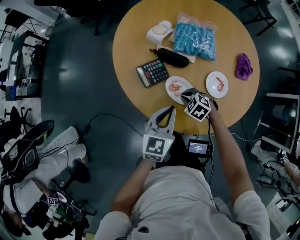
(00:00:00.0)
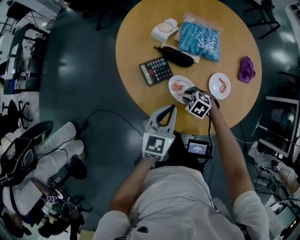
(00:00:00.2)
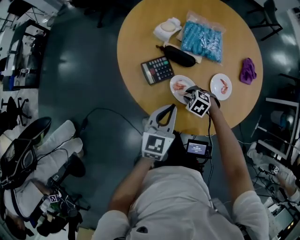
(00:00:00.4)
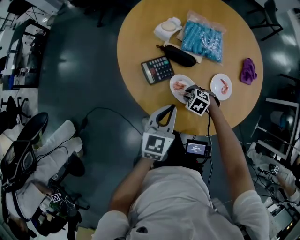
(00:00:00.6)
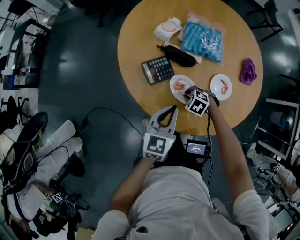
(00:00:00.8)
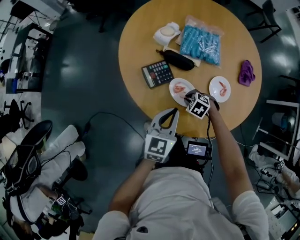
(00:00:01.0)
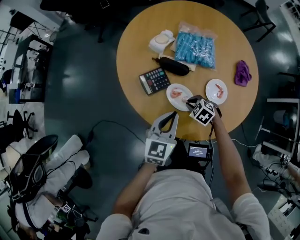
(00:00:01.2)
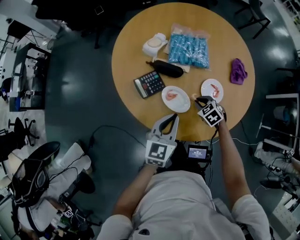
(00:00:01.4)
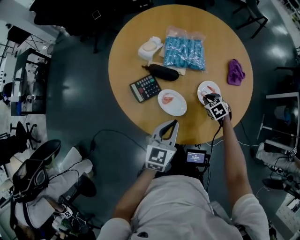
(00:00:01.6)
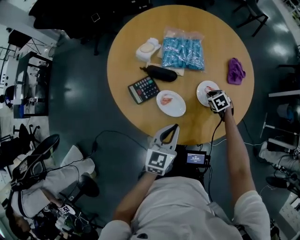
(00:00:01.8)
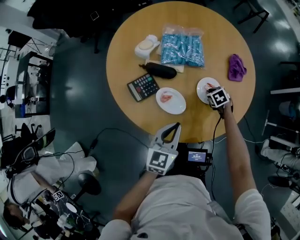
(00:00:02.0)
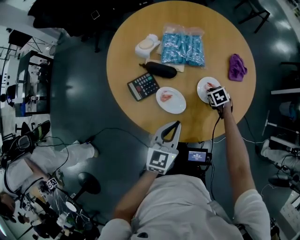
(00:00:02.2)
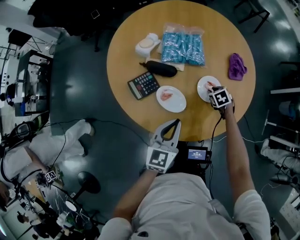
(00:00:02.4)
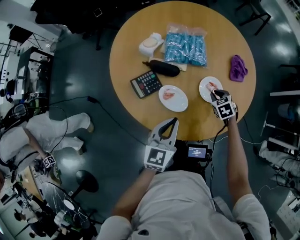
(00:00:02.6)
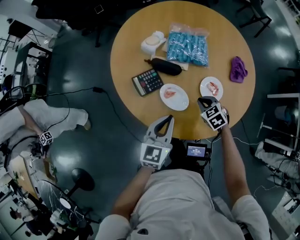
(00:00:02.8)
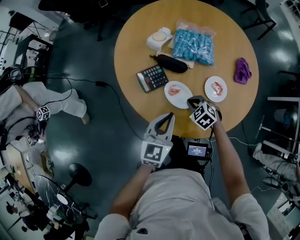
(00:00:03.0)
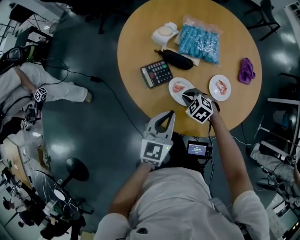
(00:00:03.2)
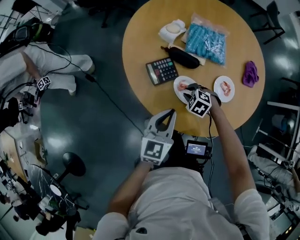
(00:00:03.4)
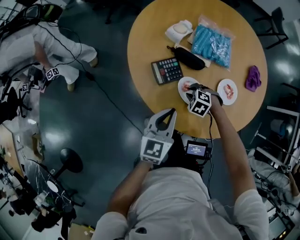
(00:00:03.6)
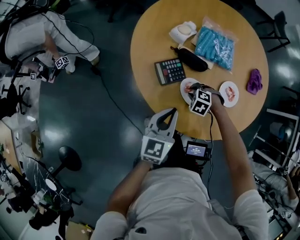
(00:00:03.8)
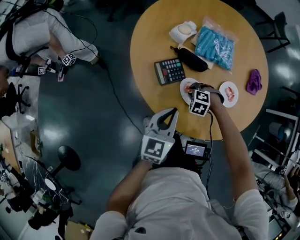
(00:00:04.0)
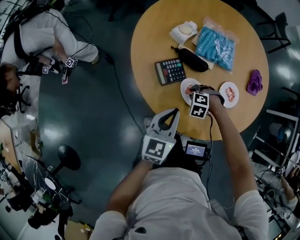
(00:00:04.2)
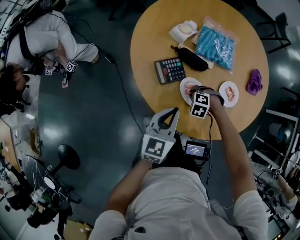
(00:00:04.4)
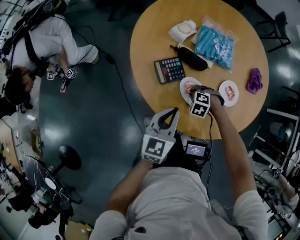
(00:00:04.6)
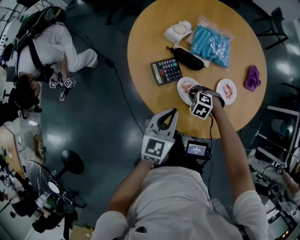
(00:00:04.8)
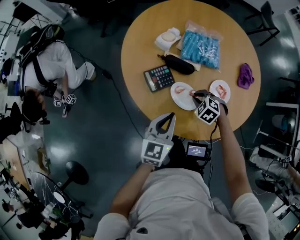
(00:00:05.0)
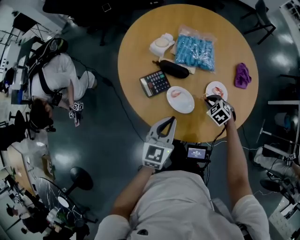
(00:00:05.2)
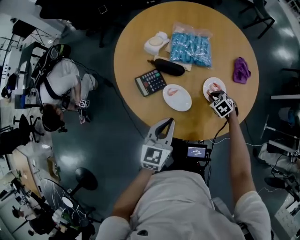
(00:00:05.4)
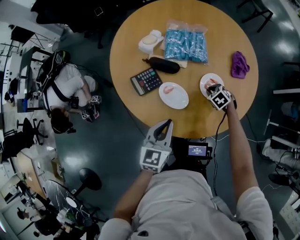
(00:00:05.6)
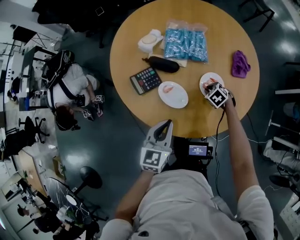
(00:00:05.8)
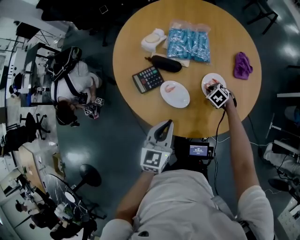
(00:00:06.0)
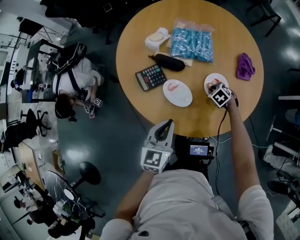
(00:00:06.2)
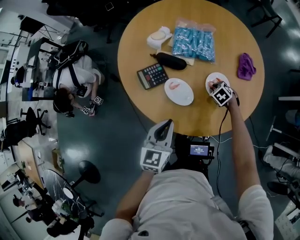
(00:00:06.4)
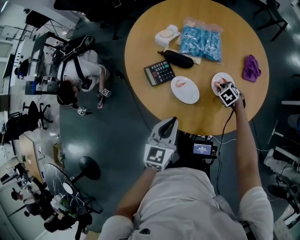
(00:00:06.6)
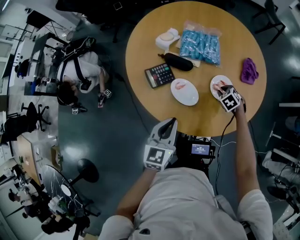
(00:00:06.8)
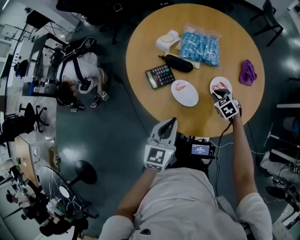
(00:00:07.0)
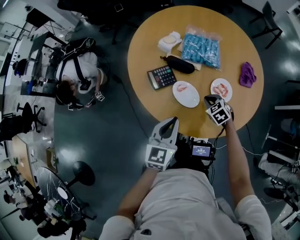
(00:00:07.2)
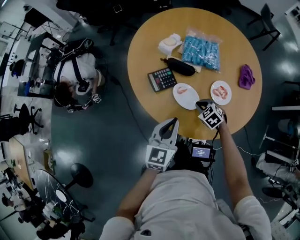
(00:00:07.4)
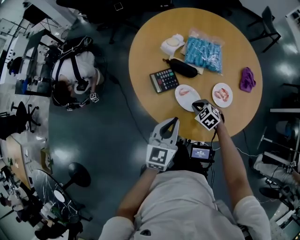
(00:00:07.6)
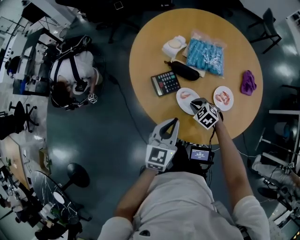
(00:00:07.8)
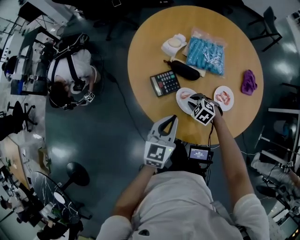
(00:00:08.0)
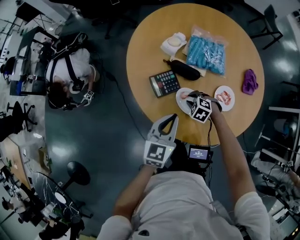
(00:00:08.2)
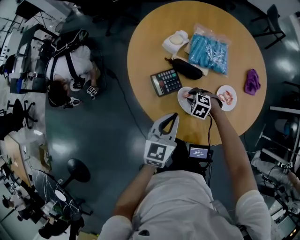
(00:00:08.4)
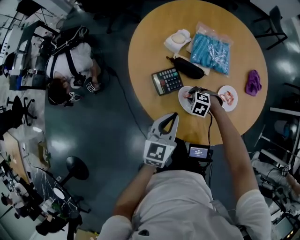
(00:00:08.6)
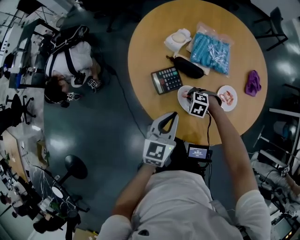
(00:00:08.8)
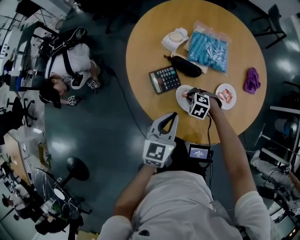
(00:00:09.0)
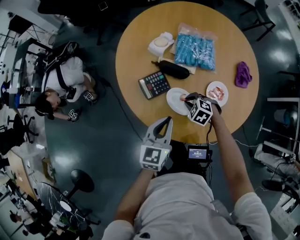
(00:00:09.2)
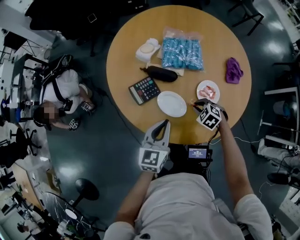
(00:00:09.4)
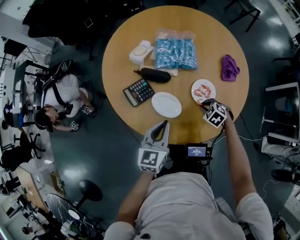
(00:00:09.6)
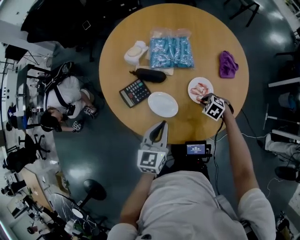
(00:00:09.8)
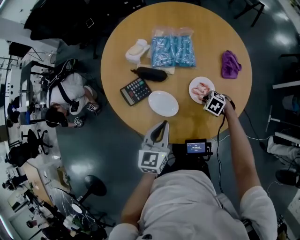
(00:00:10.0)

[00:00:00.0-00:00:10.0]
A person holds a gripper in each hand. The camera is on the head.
00:00:00.0 to 00:00:01.4: The right gripper ends up roughly 10 cm from where it was, and swivels approximately 20 degrees.
00:00:01.4 to 00:00:02.8: The right gripper goes to the right and returns, roughly 15 cm each way.
00:00:02.8 to 00:00:04.2: The left gripper changes place by some 10 cm; the right gripper moves about 15 cm, and twists some 50 degrees counterclockwise, seen from behind.
00:00:04.2 to 00:00:05.8: The left gripper ends up about 10 cm from where it was. Meanwhile the right gripper changes place by about 20 cm, and rotates around the line of its fingers by approximately 50 degrees, clockwise from behind.
00:00:05.8 to 00:00:07.2: The left gripper ends up roughly 5 cm from where it was; the right gripper changes place by approximately 15 cm.
00:00:07.2 to 00:00:08.6: The left gripper changes place by approximately 10 cm. The right gripper ends up about 15 cm from where it was, swivels approximately 40 degrees, and opens up.
00:00:08.6 to 00:00:10.0: The right gripper ends up roughly 25 cm from where it was, and turns by about 30 degrees, while the left gripper moves approximately 10 cm.

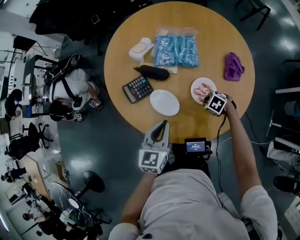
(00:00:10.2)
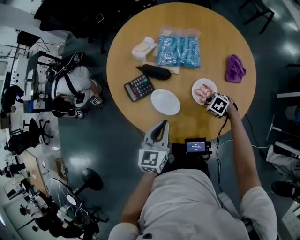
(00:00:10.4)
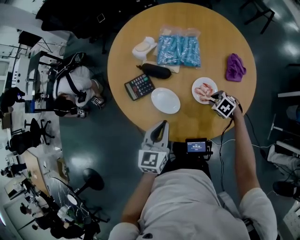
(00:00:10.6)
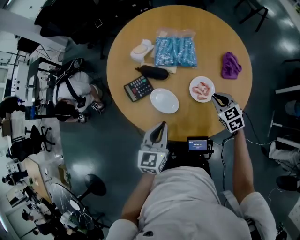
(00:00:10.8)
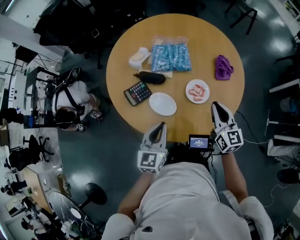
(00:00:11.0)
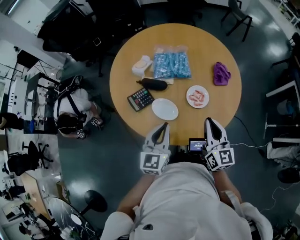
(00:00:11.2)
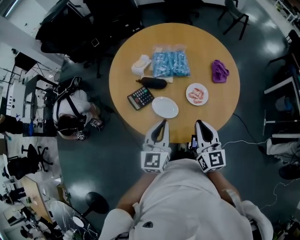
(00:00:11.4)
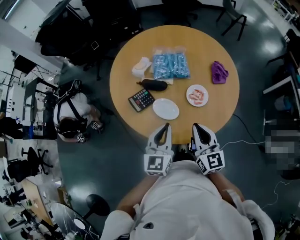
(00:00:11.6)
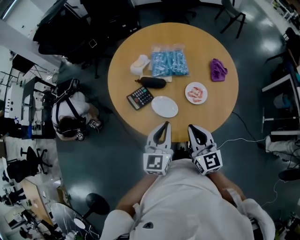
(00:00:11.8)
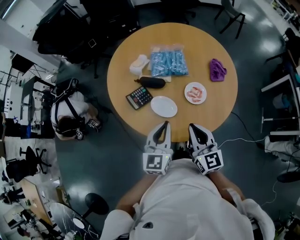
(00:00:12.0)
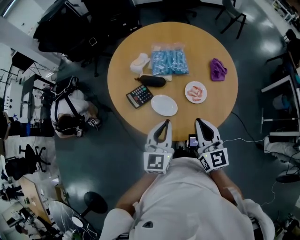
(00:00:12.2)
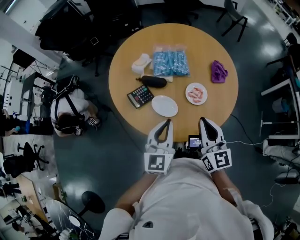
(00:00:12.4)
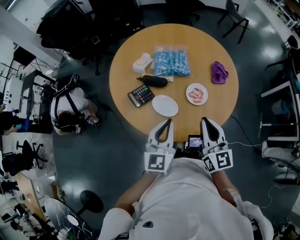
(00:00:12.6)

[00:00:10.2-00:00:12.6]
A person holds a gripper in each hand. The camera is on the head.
00:00:10.2 to 00:00:11.4: The left gripper shifts approximately 10 cm upward. The right gripper moves upward, about 30 cm, and tilts its fingers roughly 70 degrees upward.
00:00:11.4 to 00:00:12.6: The grippers move only a little.

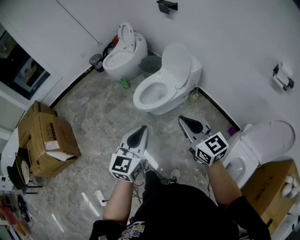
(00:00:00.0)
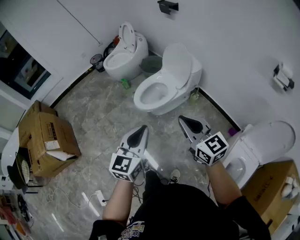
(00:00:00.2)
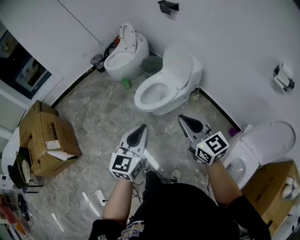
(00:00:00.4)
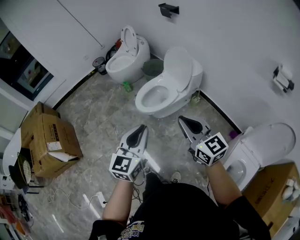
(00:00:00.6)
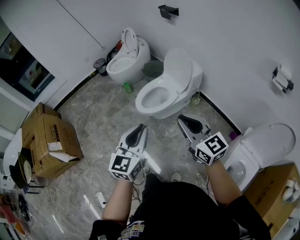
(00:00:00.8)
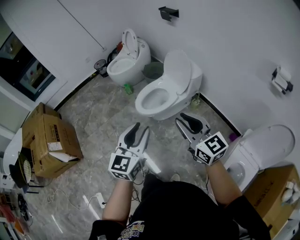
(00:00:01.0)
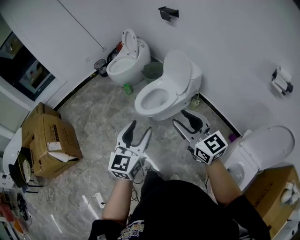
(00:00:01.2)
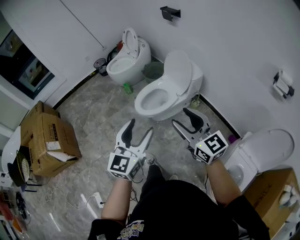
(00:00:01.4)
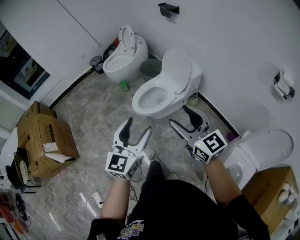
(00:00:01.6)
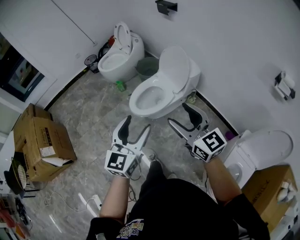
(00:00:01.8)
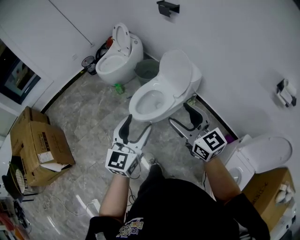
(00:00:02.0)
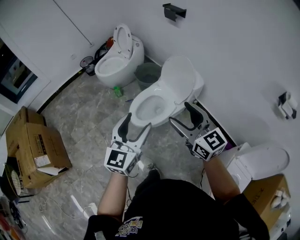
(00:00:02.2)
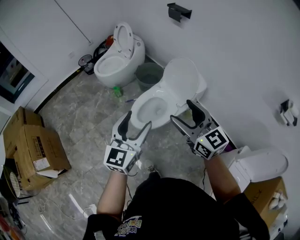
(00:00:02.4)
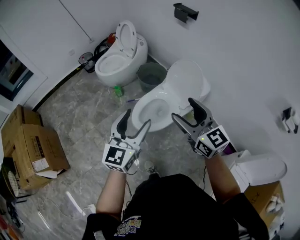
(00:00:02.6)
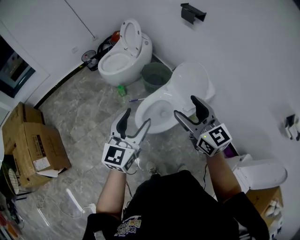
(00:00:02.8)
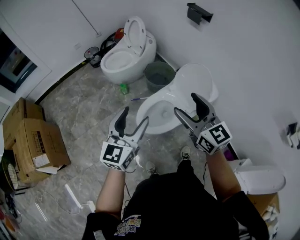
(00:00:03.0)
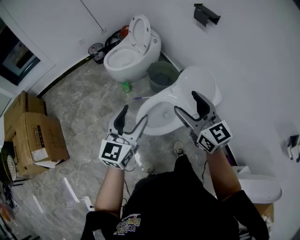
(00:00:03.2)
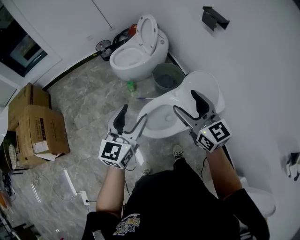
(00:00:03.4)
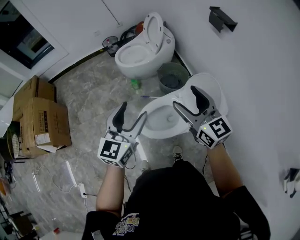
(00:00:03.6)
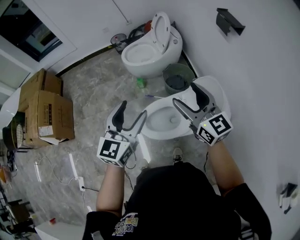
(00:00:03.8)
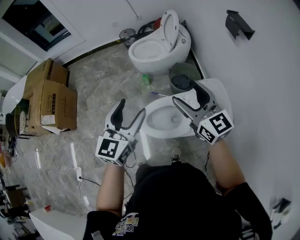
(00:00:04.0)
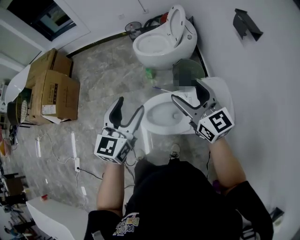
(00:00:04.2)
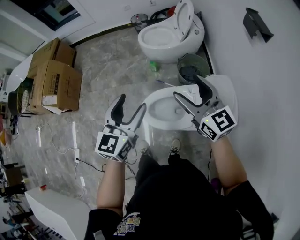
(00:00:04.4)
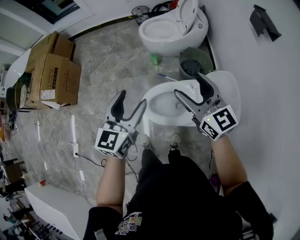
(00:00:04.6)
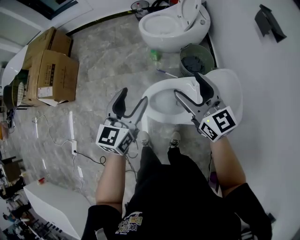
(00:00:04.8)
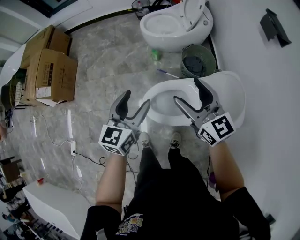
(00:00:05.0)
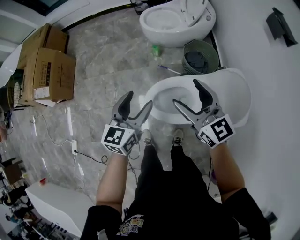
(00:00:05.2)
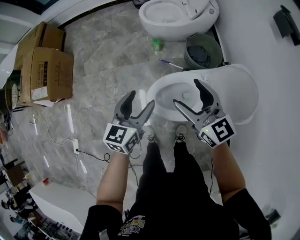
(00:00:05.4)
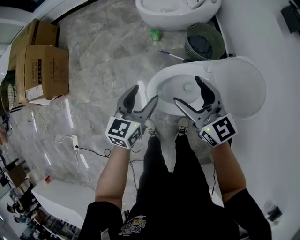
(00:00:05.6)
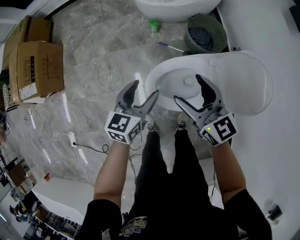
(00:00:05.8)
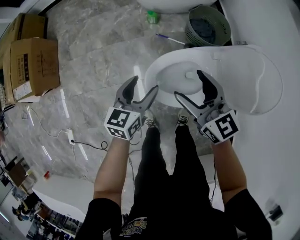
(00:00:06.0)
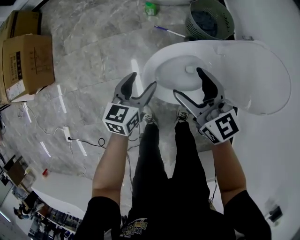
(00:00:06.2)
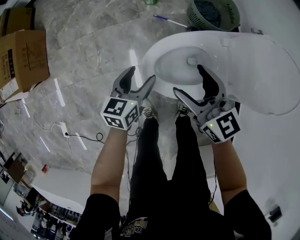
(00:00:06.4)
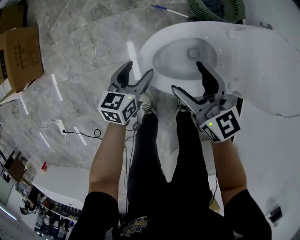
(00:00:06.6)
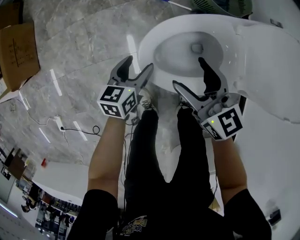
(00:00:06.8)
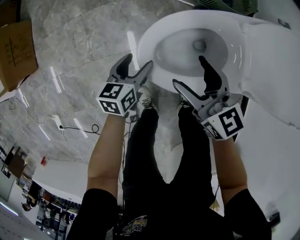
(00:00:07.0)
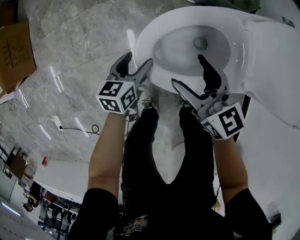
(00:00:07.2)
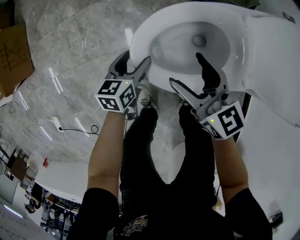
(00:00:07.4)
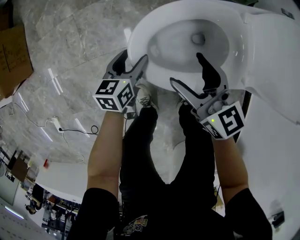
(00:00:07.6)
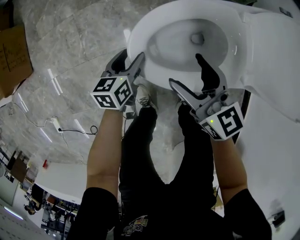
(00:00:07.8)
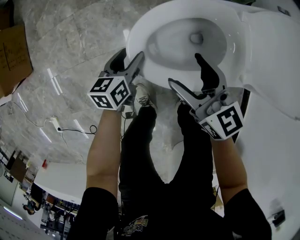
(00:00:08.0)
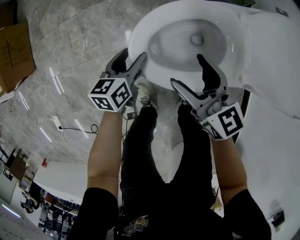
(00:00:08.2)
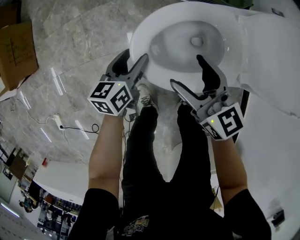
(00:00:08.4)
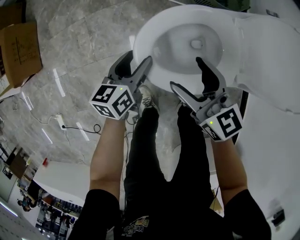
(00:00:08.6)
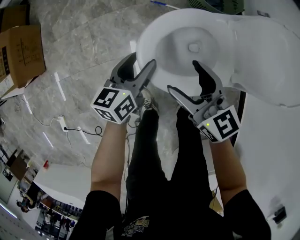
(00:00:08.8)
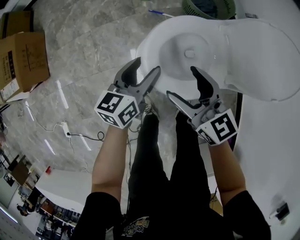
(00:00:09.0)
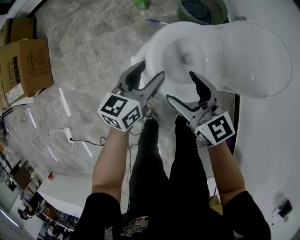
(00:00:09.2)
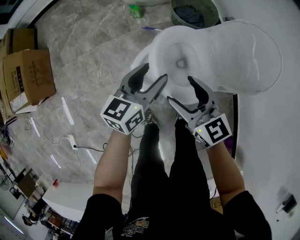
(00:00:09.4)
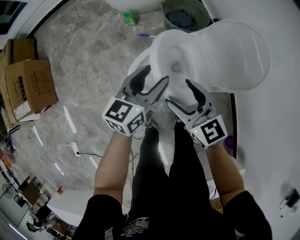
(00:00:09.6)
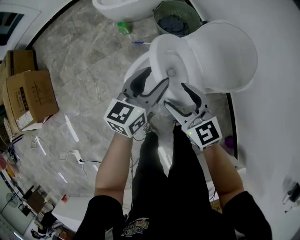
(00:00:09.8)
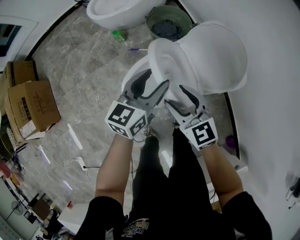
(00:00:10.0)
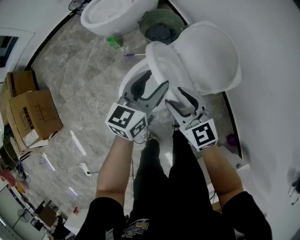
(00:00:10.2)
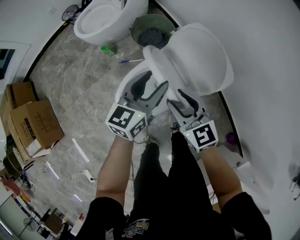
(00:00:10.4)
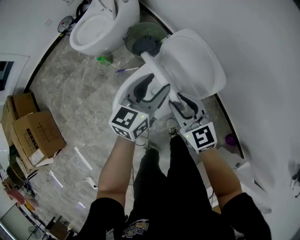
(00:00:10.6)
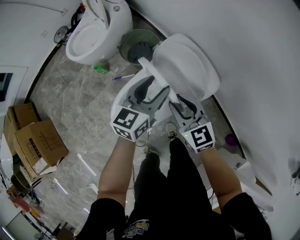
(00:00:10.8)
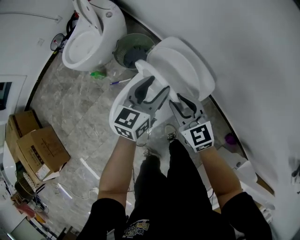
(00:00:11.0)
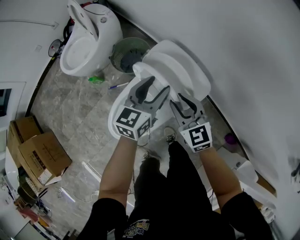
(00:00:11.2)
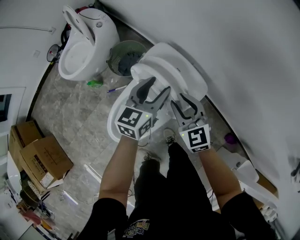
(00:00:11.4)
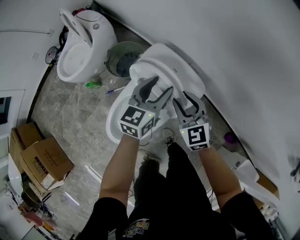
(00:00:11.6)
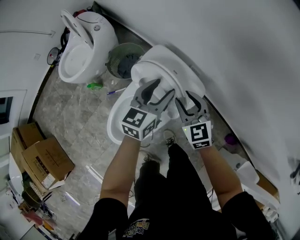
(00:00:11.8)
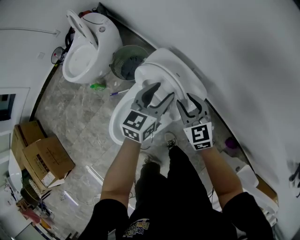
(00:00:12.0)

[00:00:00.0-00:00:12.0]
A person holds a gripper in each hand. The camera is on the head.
00:00:00.0 to 00:00:01.6: The right gripper moves some 5 cm, and opens. Meanwhile the left gripper changes place by approximately 5 cm, and opens.
00:00:01.6 to 00:00:03.0: Both grippers travel together forward, some 35 cm.
00:00:03.0 to 00:00:04.4: The right gripper moves roughly 20 cm, and turns by approximately 30 degrees. The left gripper moves some 15 cm, and turns by roughly 30 degrees.
00:00:04.4 to 00:00:06.0: The right gripper heads downward and to the left, covering some 30 cm; the left gripper shifts about 35 cm downward, and swivels approximately 30 degrees.
00:00:06.0 to 00:00:07.6: The grippers both shift downward by approximately 30 cm.
00:00:07.6 to 00:00:09.0: The left gripper heads upward, covering about 25 cm; the right gripper travels upward by approximately 15 cm.
00:00:09.0 to 00:00:10.4: Both grippers travel together to the right and upward, about 30 cm. The left gripper turns by some 30 degrees. Meanwhile the right gripper changes its angle by some 30 degrees, and closes up.
00:00:10.4 to 00:00:12.0: The two grippers go roughly 20 cm to the right and forward. The right gripper swivels some 20 degrees.
